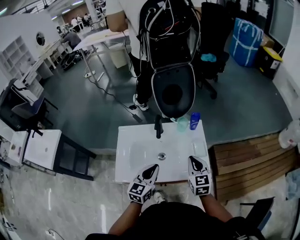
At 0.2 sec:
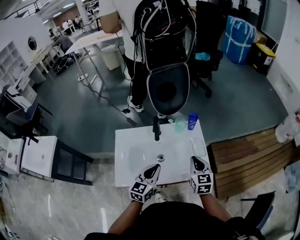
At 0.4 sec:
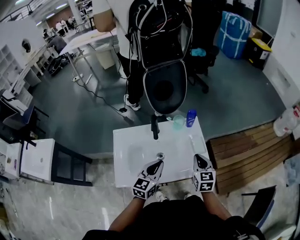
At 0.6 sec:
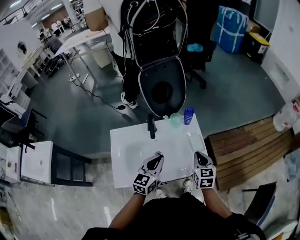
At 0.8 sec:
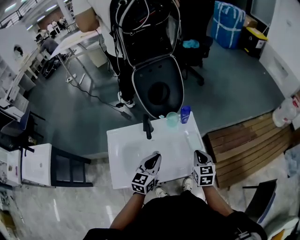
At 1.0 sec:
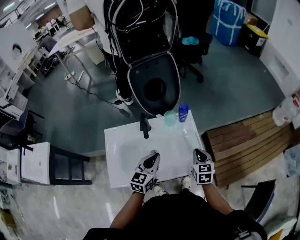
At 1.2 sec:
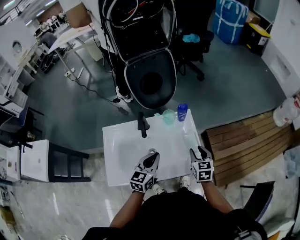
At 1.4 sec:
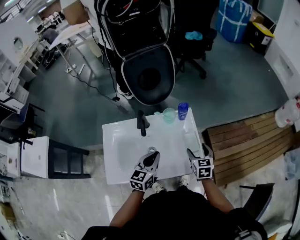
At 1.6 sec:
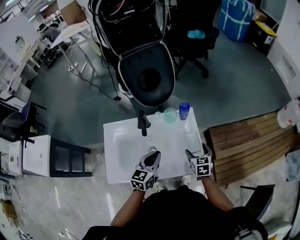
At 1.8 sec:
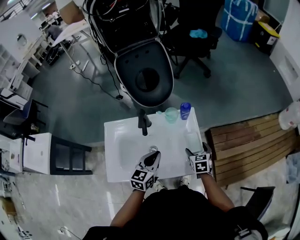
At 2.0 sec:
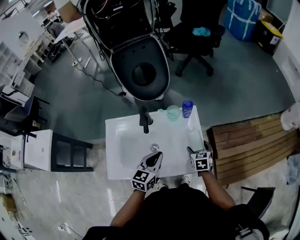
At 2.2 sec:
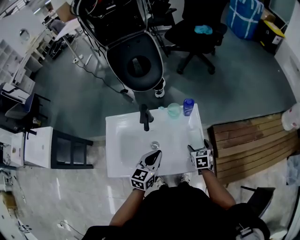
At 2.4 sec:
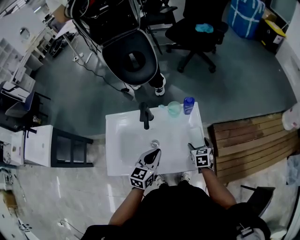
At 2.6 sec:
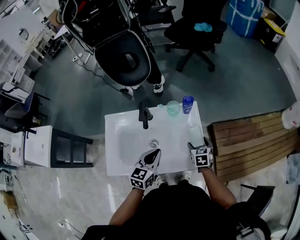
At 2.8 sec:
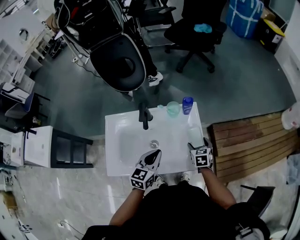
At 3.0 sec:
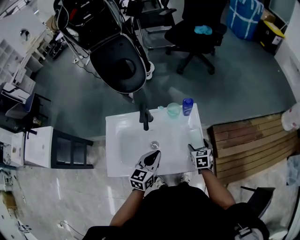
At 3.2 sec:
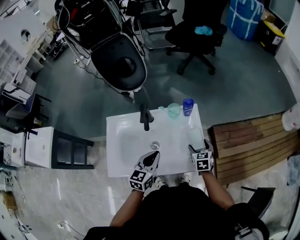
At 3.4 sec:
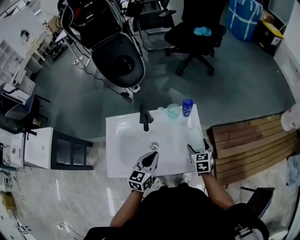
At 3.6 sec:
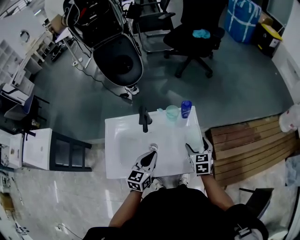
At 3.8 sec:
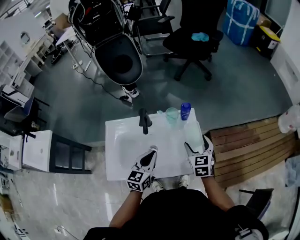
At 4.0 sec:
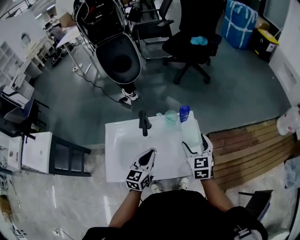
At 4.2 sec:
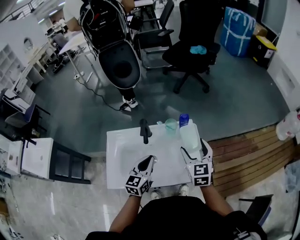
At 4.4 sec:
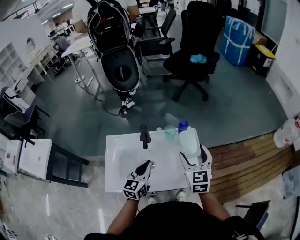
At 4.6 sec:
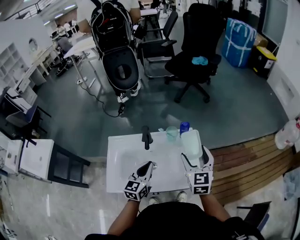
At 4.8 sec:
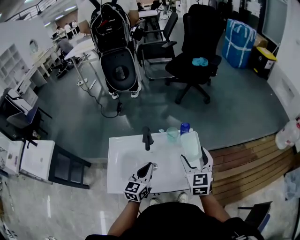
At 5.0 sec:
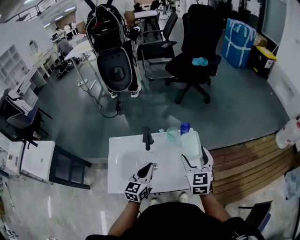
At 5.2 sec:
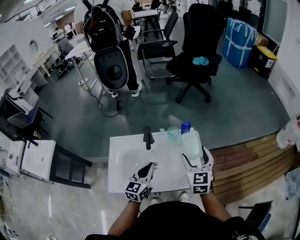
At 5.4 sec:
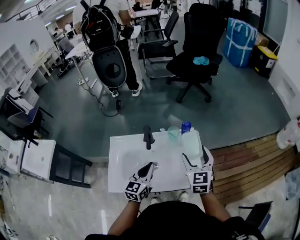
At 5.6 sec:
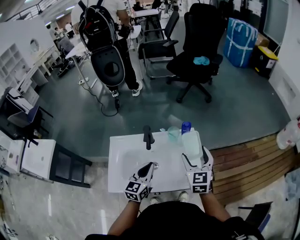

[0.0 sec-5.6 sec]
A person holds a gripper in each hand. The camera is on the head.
0.0 sec to 1.4 sec: The right gripper moves downward, to the right and forward, approximately 15 cm, and opens its fingers, while the left gripper travels forward by approximately 10 cm.
1.4 sec to 2.8 sec: The right gripper shifts about 5 cm downward.
2.8 sec to 4.2 sec: The right gripper shifts roughly 25 cm upward, and rotates roughly 30 degrees; the left gripper changes place by some 5 cm.
4.2 sec to 5.6 sec: There are only small adjustments of the grippers.

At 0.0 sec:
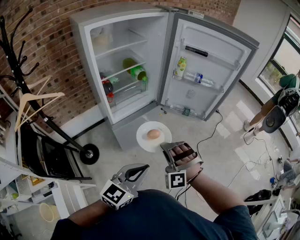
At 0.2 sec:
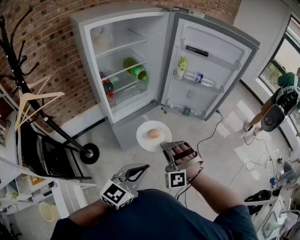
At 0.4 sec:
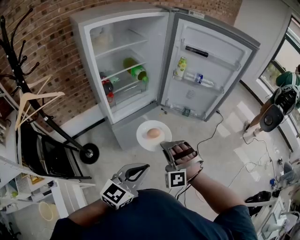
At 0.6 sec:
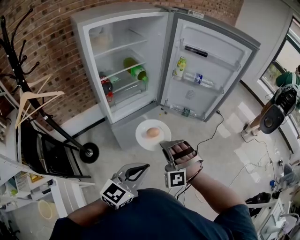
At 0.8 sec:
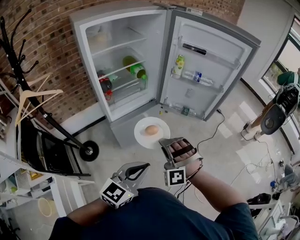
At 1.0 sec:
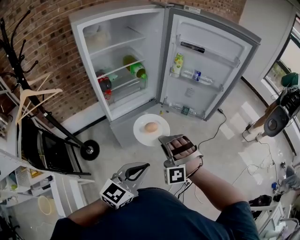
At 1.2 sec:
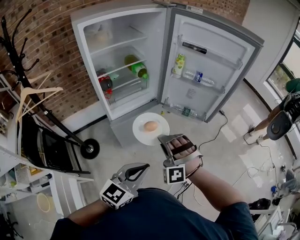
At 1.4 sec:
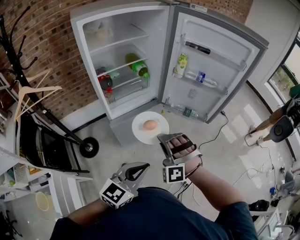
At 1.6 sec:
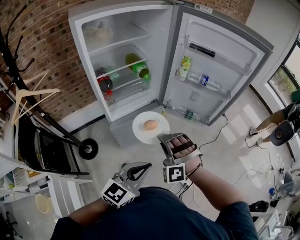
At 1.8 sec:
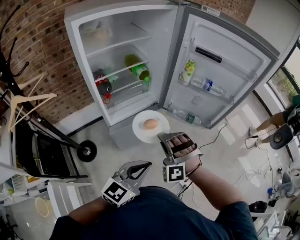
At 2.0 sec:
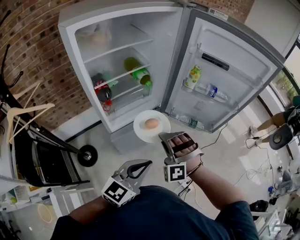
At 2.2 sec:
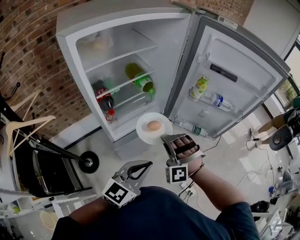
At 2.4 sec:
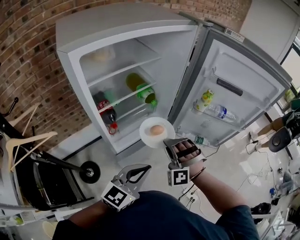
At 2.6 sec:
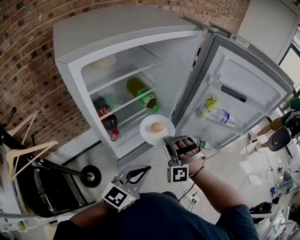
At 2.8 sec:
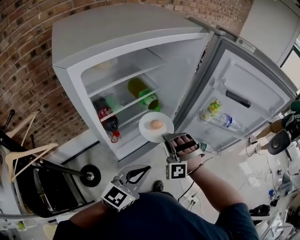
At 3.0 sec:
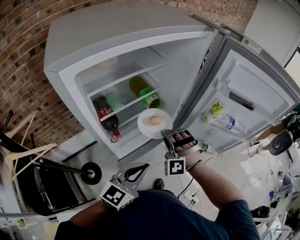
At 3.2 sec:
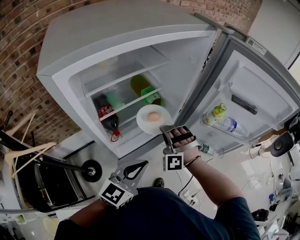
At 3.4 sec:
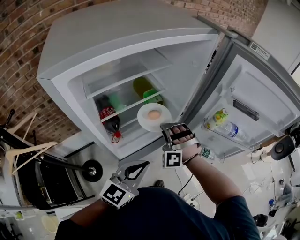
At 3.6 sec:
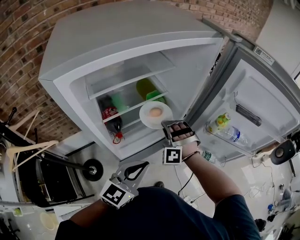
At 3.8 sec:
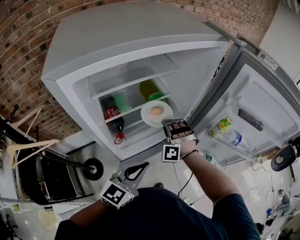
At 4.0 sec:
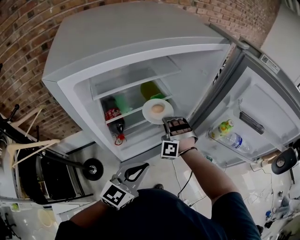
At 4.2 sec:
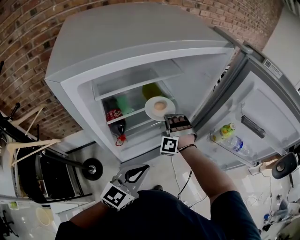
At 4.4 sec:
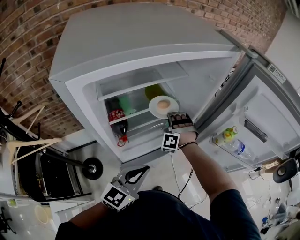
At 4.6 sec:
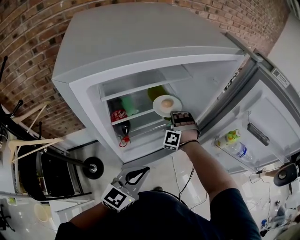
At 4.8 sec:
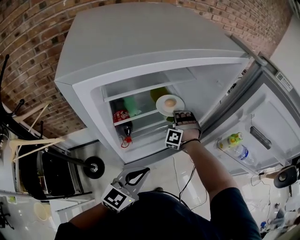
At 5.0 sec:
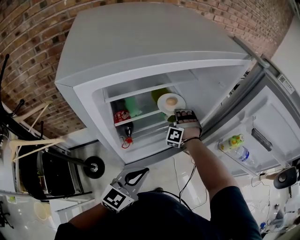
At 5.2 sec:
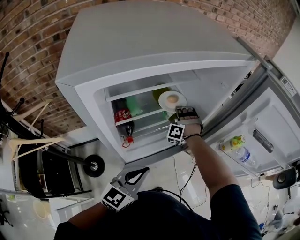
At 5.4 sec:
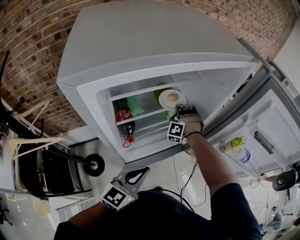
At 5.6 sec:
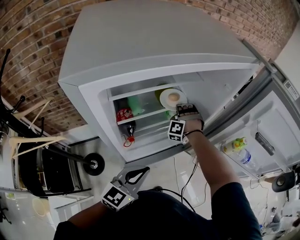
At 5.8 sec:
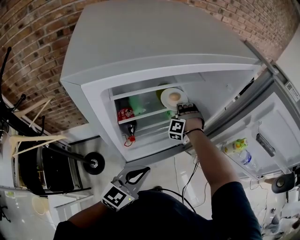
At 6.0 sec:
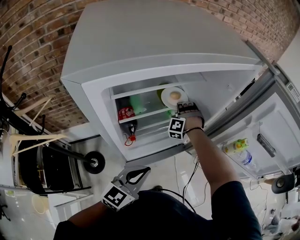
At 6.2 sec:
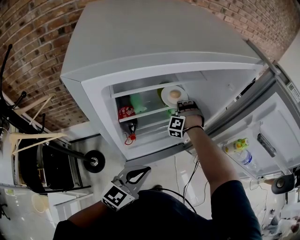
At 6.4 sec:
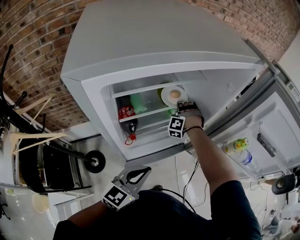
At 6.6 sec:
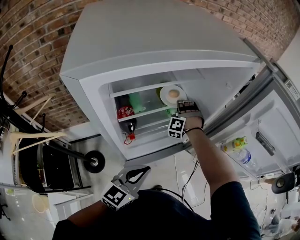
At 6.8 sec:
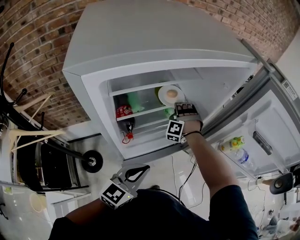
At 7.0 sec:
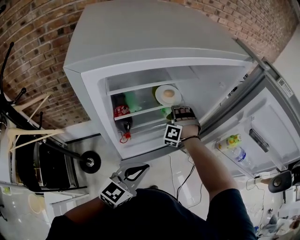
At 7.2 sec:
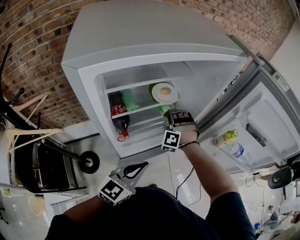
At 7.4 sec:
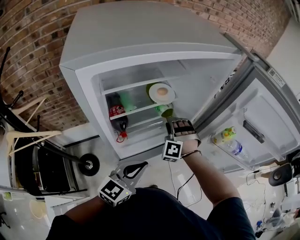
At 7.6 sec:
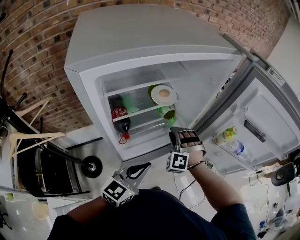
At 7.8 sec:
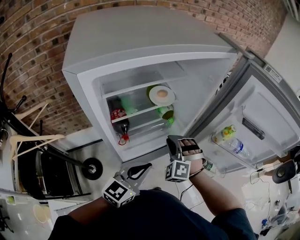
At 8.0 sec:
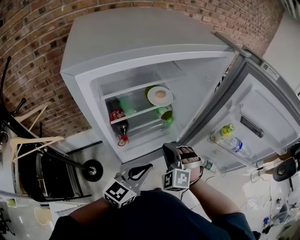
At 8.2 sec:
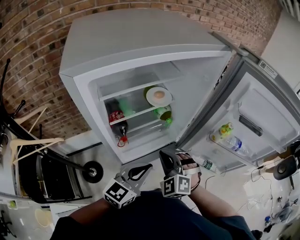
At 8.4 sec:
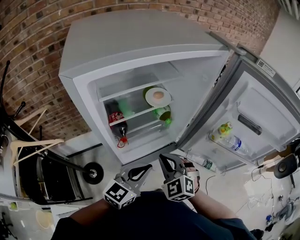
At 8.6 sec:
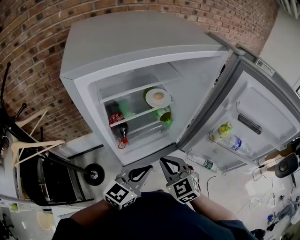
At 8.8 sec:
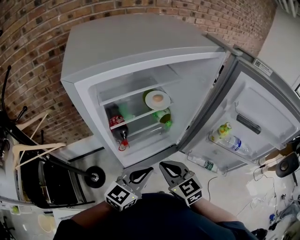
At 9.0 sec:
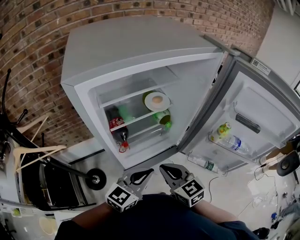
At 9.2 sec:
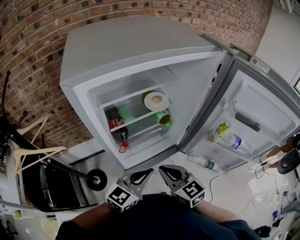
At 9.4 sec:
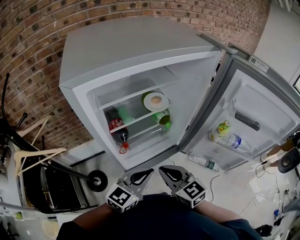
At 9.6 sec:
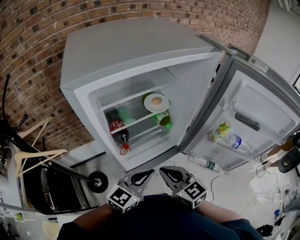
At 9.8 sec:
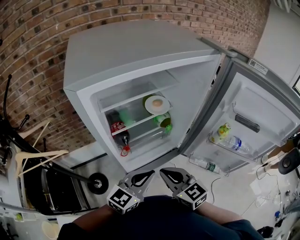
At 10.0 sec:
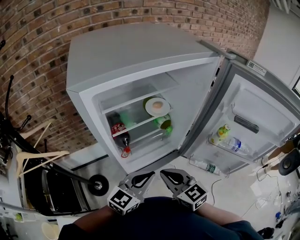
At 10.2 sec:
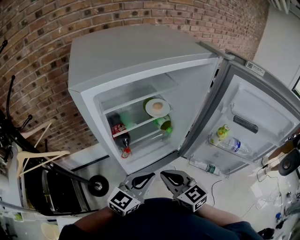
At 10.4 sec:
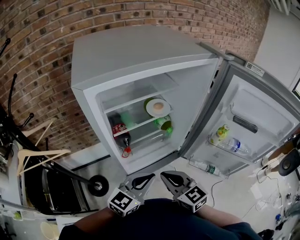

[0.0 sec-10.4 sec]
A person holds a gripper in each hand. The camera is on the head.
0.0 sec to 1.4 sec: The left gripper changes place by roughly 5 cm.
1.4 sec to 3.0 sec: The left gripper moves about 35 cm.

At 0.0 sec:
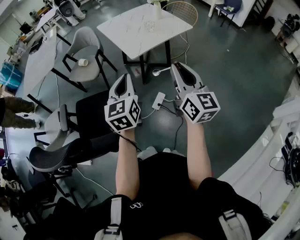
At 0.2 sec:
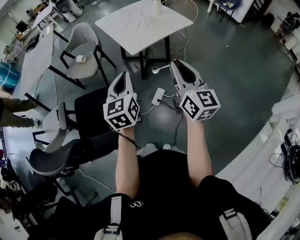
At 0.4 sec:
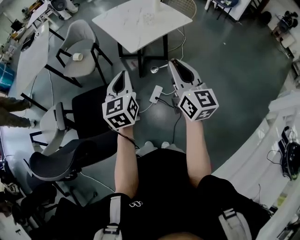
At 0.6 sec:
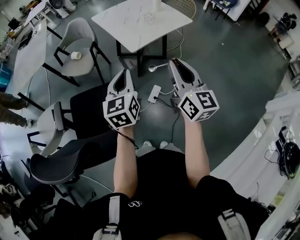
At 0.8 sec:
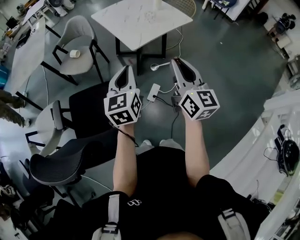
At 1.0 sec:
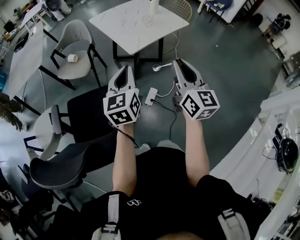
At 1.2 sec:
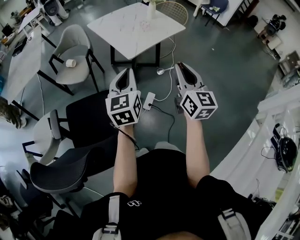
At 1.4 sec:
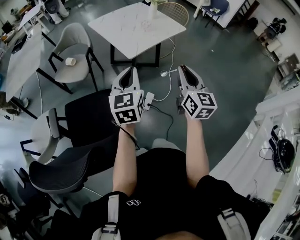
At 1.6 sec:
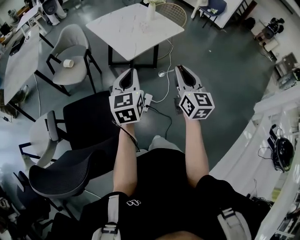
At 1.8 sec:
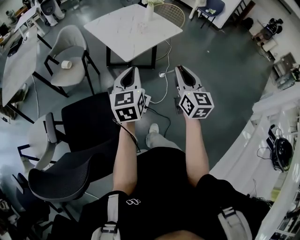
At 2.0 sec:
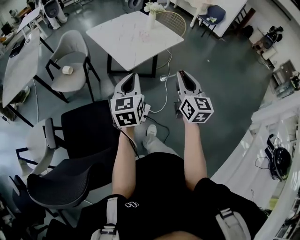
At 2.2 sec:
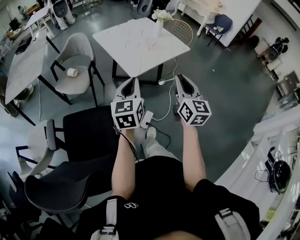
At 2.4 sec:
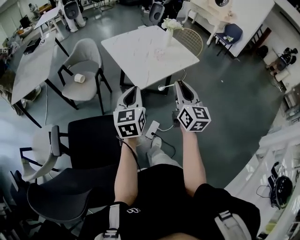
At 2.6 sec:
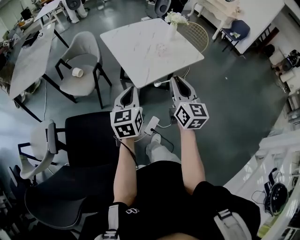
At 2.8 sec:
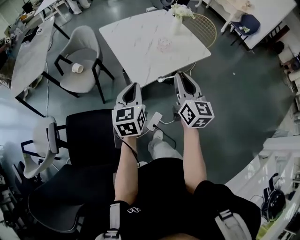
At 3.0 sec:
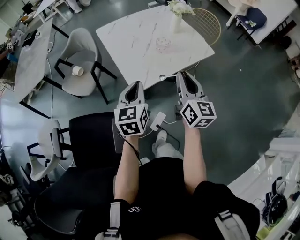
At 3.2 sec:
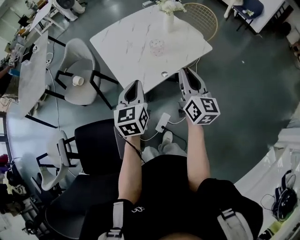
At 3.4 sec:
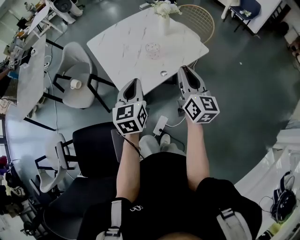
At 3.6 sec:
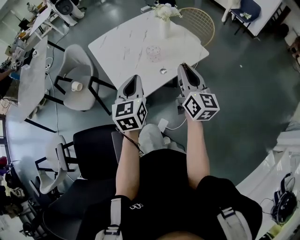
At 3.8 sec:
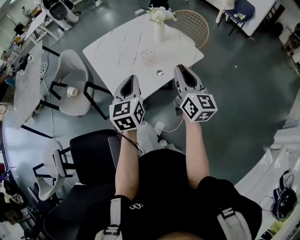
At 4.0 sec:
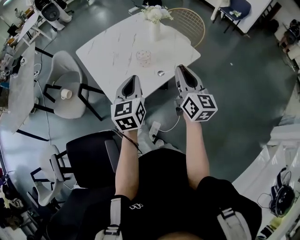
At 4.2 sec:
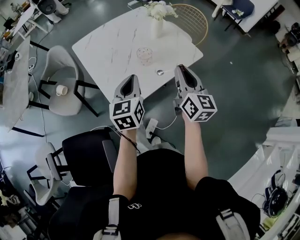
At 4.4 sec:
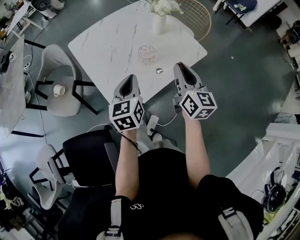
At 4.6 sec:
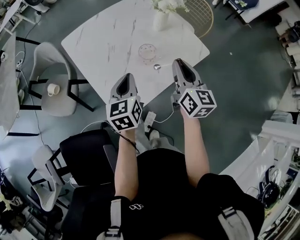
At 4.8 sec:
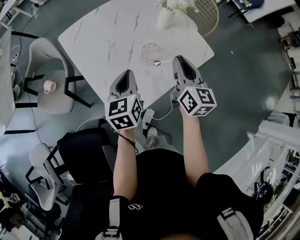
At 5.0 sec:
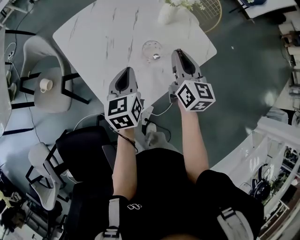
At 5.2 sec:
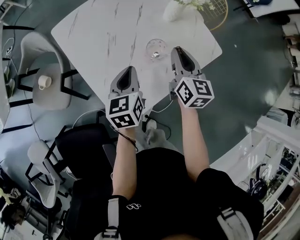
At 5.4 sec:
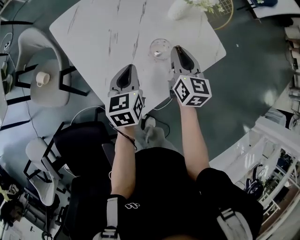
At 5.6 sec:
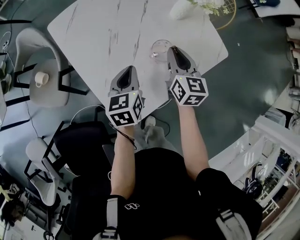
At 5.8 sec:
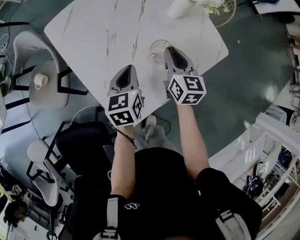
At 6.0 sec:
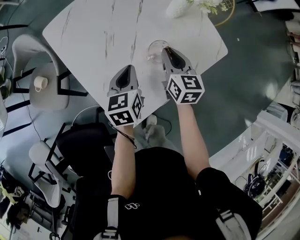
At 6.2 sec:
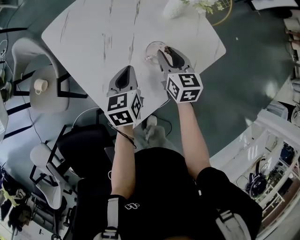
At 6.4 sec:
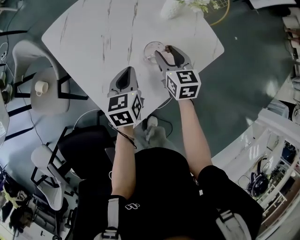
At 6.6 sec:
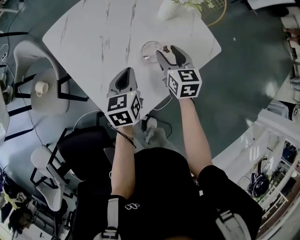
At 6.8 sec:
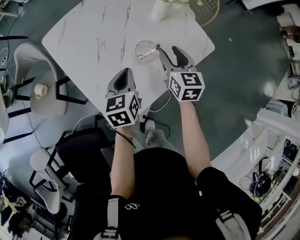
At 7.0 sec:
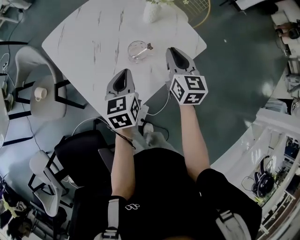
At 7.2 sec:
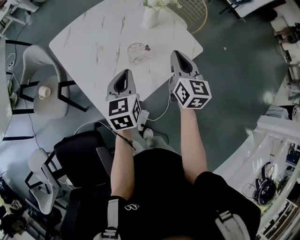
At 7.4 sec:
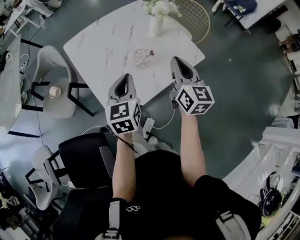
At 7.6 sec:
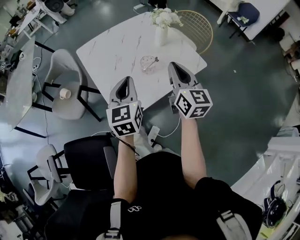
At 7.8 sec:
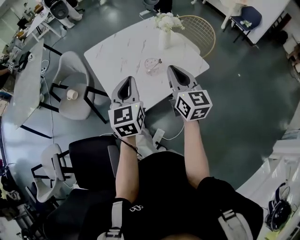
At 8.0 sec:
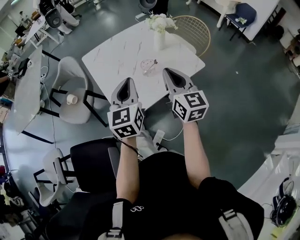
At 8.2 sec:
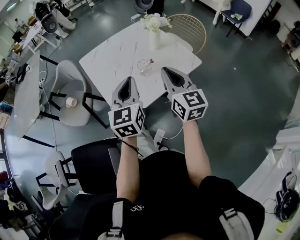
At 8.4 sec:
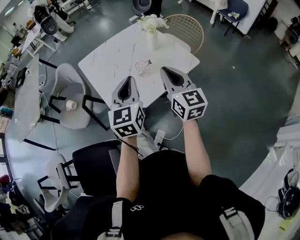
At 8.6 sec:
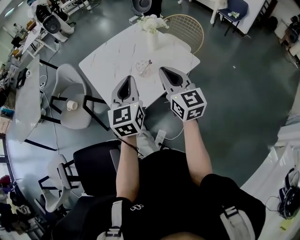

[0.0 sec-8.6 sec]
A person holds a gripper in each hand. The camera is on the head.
0.0 sec to 1.4 sec: The left gripper goes roughly 5 cm forward; the right gripper changes place by approximately 5 cm.
1.4 sec to 2.8 sec: The grippers both shift forward by roughly 25 cm.
2.8 sec to 4.4 sec: The right gripper is displaced forward and to the right by approximately 25 cm, while the left gripper travels forward by approximately 25 cm.
4.4 sec to 5.8 sec: The left gripper moves downward and forward, some 15 cm, while the right gripper heads downward, forward and to the left, covering roughly 25 cm.
5.8 sec to 7.2 sec: The grippers both shift upward, to the right and backward by about 15 cm. The right gripper opens, then closes again.
7.2 sec to 8.6 sec: The right gripper moves backward, upward and to the left, roughly 20 cm, and swivels approximately 20 degrees; the left gripper heads upward and backward, covering approximately 20 cm, and swivels some 20 degrees.
